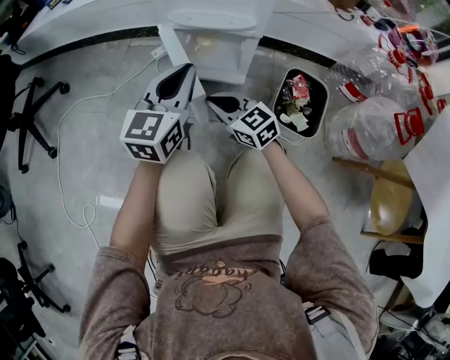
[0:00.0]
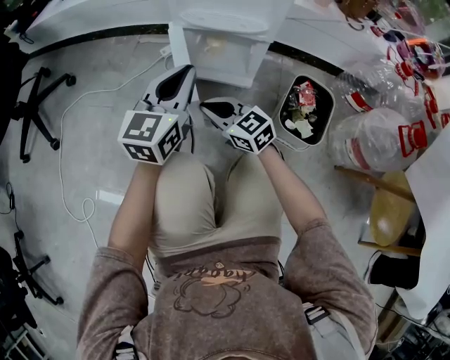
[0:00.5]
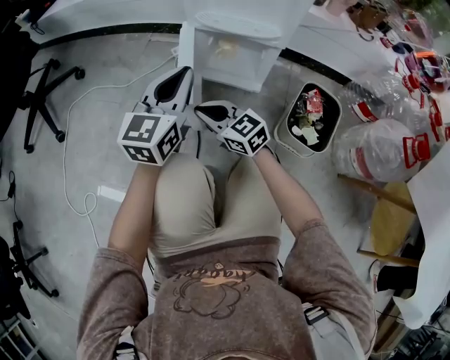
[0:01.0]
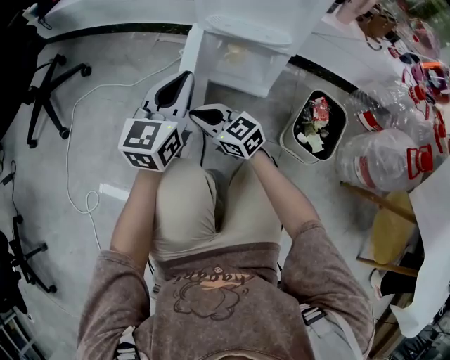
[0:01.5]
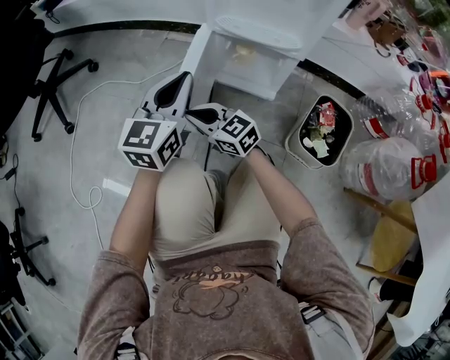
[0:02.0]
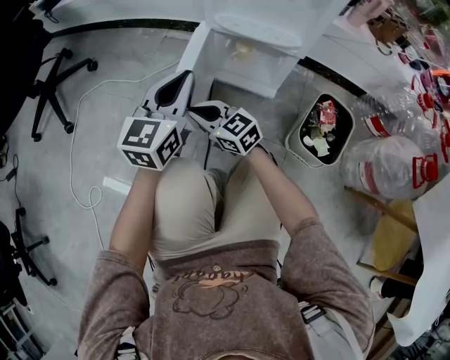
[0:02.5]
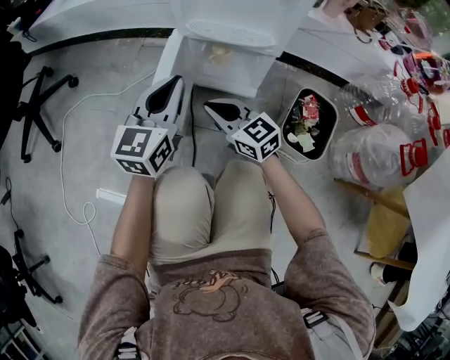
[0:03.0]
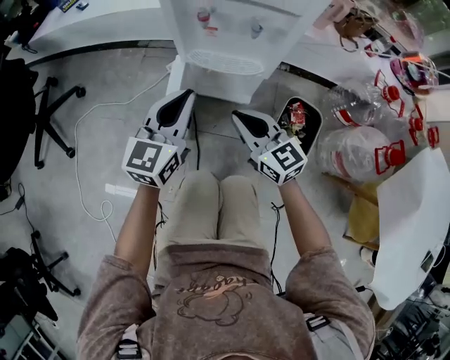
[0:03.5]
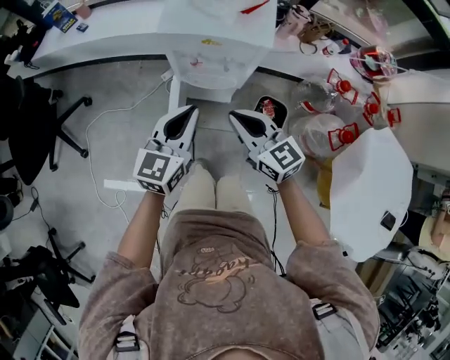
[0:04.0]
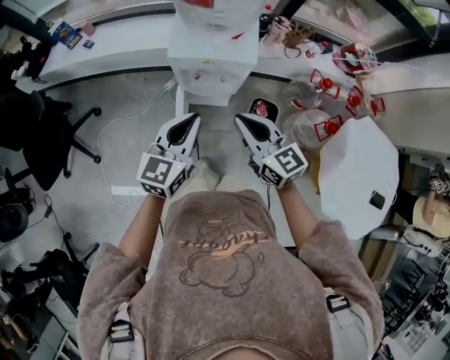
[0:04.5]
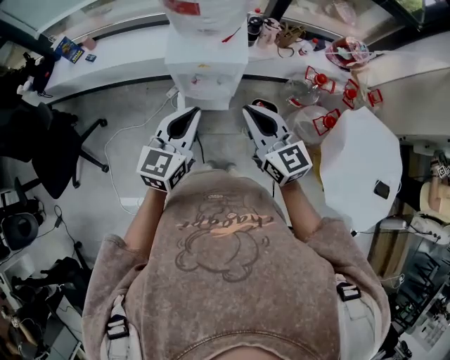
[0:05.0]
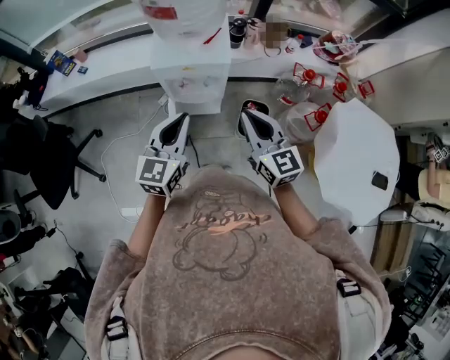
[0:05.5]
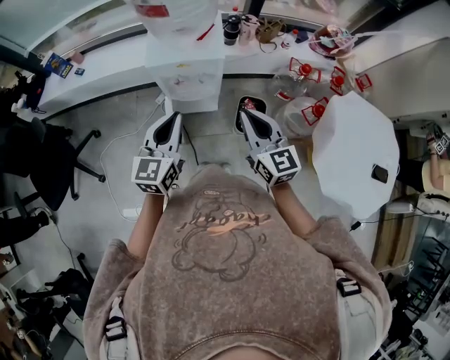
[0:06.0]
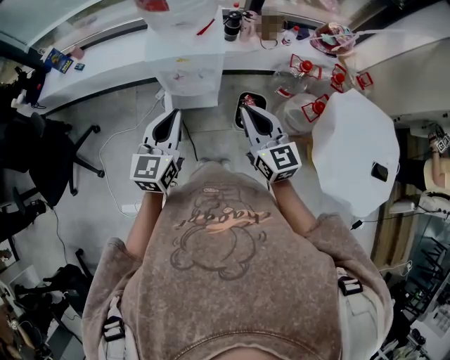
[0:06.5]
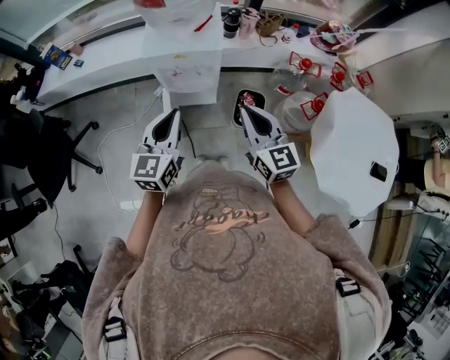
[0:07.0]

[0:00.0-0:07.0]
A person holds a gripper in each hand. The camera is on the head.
0:00.0 to 0:02.0: The right gripper moves to the left, roughly 15 cm. Meanwhile the left gripper heads to the left, covering some 10 cm.
0:02.0 to 0:03.5: The right gripper shifts approximately 25 cm upward and to the right, and swivels about 30 degrees. The left gripper goes roughly 15 cm upward and to the right.
0:03.5 to 0:05.0: The grippers both shift upward by approximately 40 cm.
0:05.0 to 0:07.0: The right gripper travels to the right by some 5 cm, while the left gripper ends up roughly 5 cm from where it was.

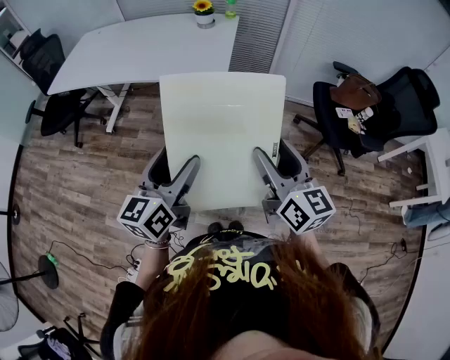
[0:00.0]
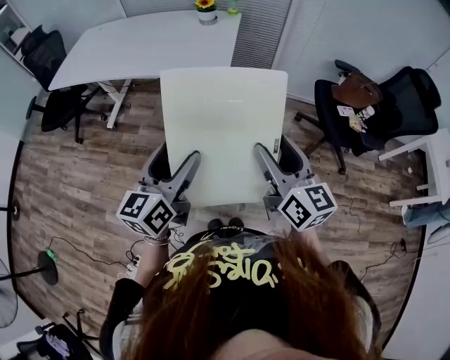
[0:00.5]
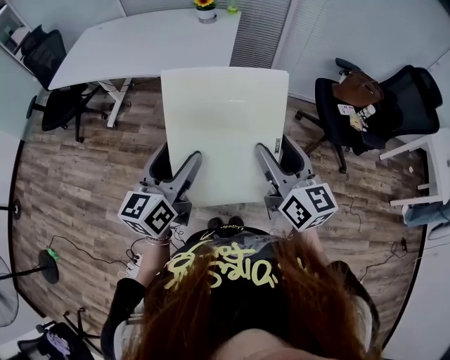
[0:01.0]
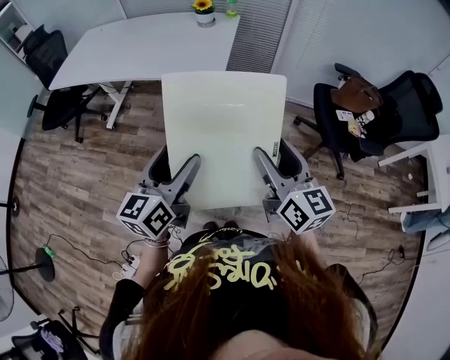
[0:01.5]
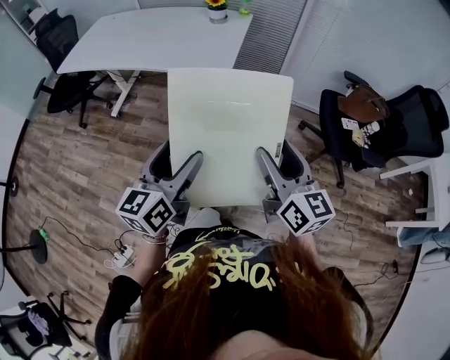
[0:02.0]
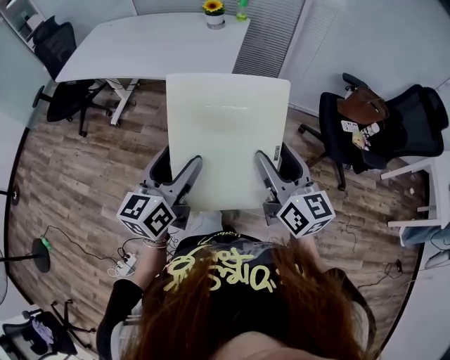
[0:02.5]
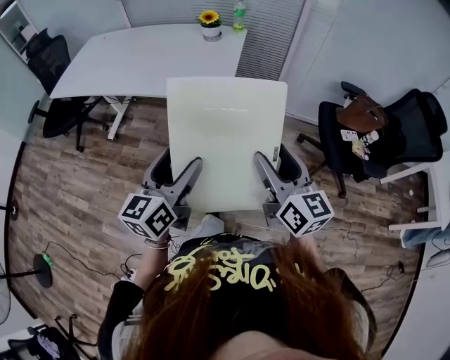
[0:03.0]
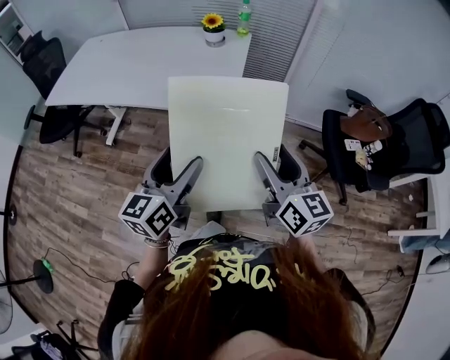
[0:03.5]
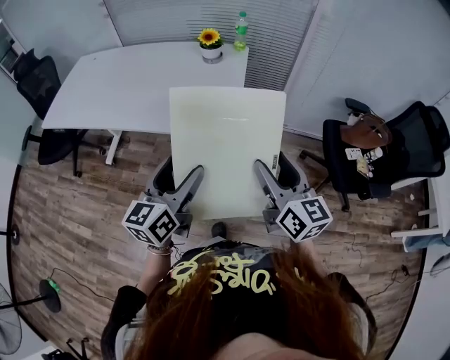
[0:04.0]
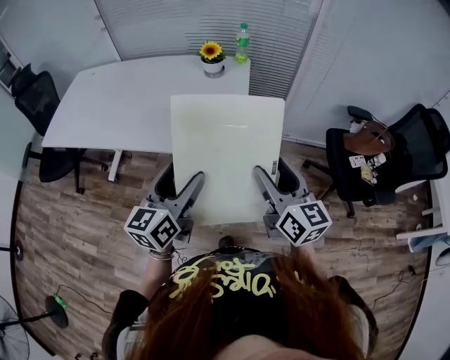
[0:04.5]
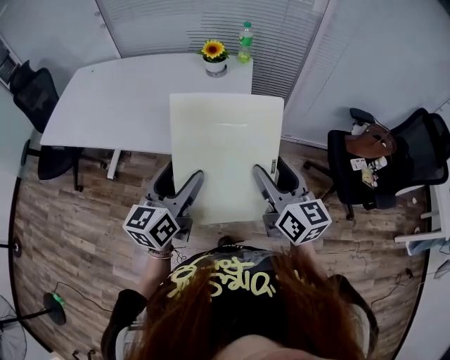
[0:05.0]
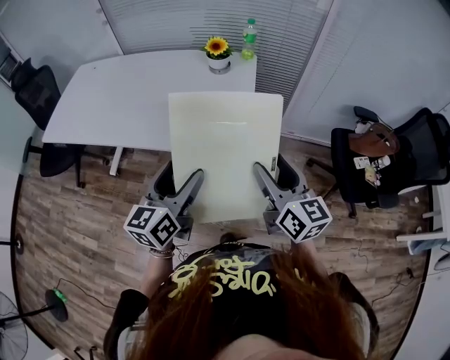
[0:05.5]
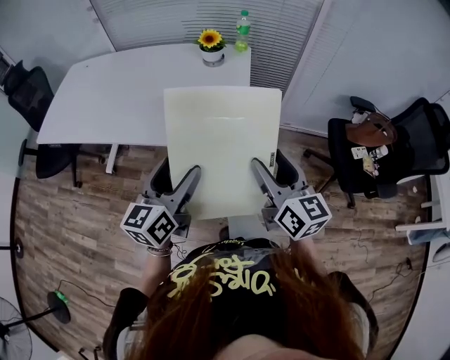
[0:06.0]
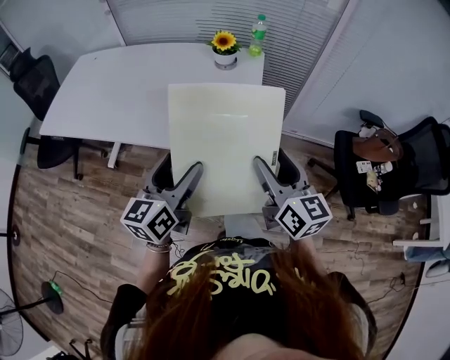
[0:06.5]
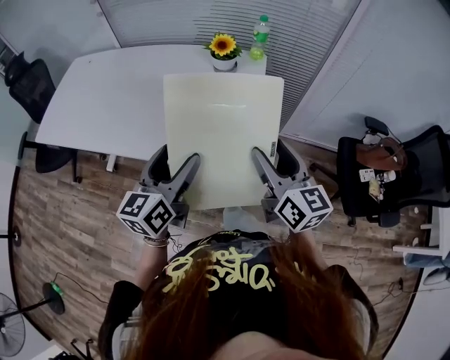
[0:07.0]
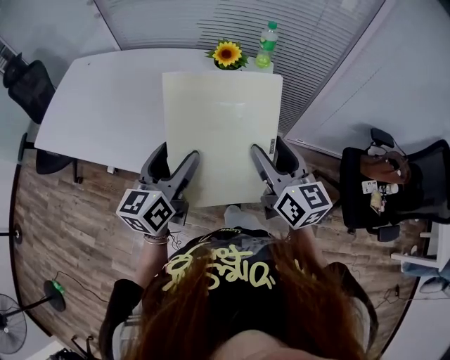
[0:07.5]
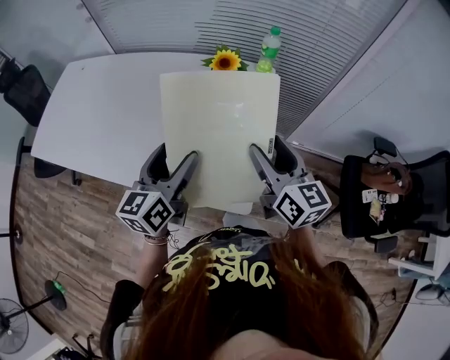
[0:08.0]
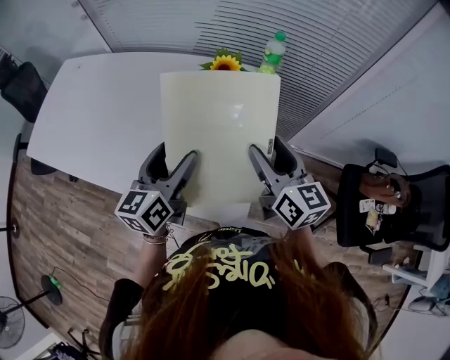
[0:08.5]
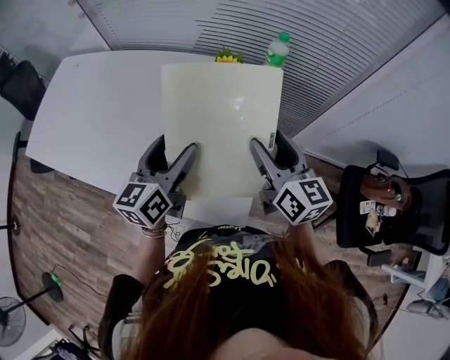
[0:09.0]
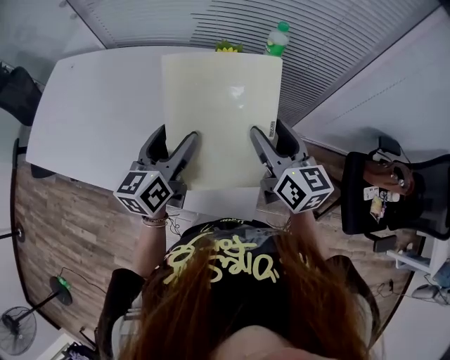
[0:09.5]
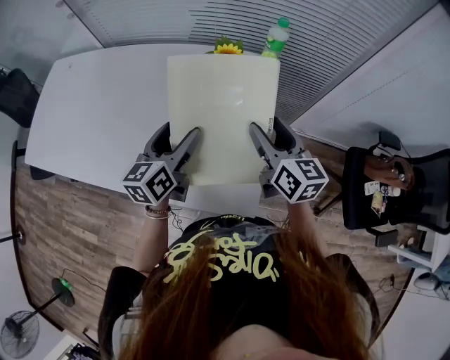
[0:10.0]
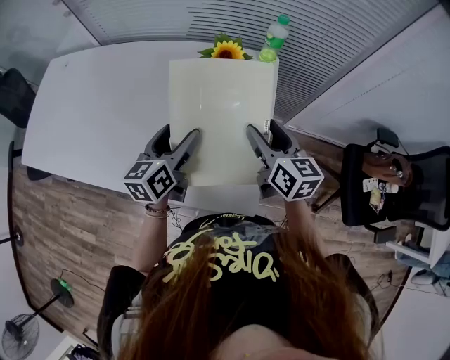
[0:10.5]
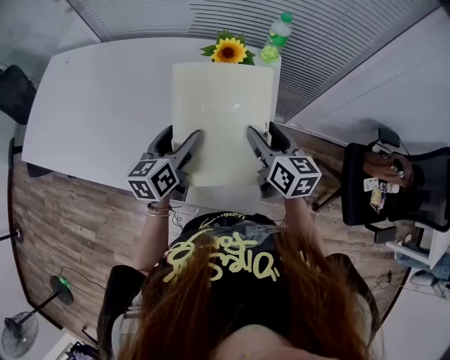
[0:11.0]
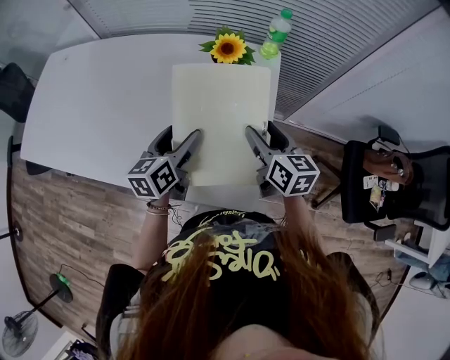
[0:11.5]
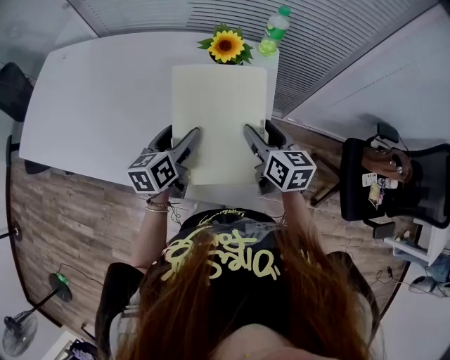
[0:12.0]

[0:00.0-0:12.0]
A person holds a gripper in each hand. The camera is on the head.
0:00.0 to 0:02.0: The grippers stay close to where they were, moving slightly.
0:02.0 to 0:04.0: The two grippers go about 20 cm forward.
0:04.0 to 0:06.0: The two grippers go approximately 5 cm forward.
0:06.0 to 0:08.0: Both grippers travel together forward, about 25 cm.
0:08.0 to 0:10.0: The grippers both shift forward by approximately 10 cm.
0:10.0 to 0:12.0: The two grippers go approximately 5 cm downward.

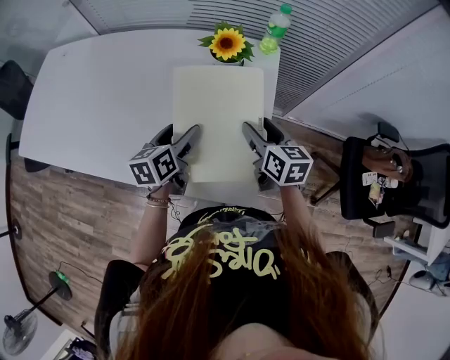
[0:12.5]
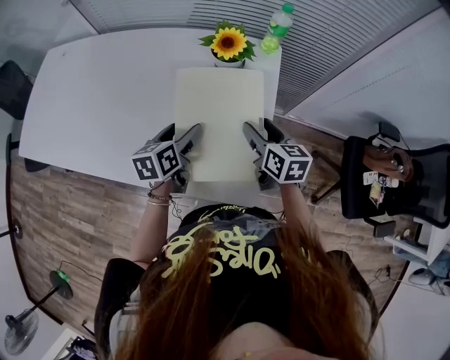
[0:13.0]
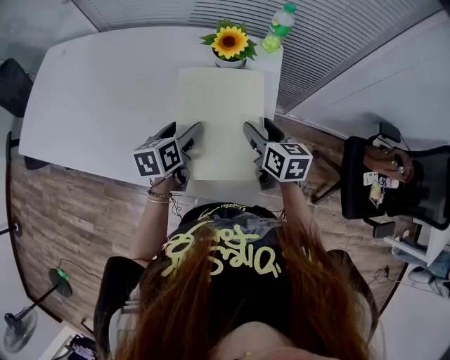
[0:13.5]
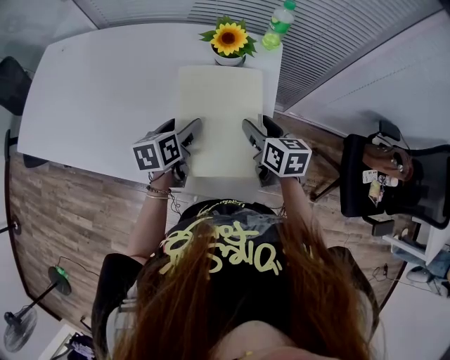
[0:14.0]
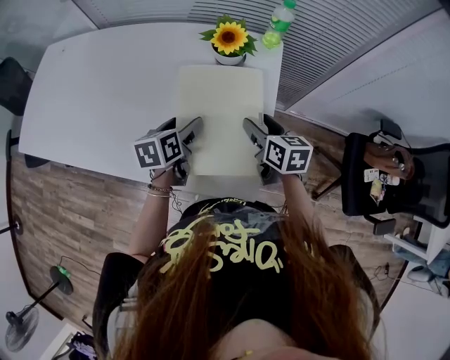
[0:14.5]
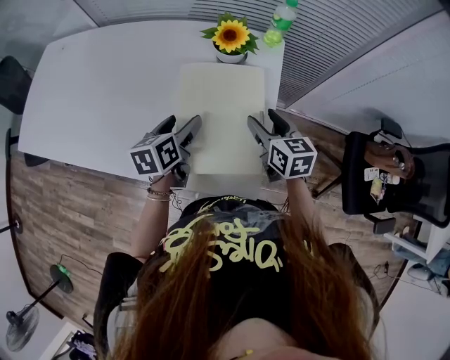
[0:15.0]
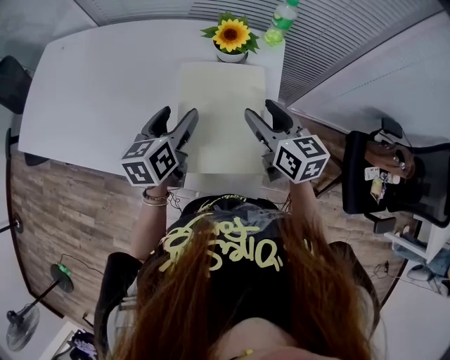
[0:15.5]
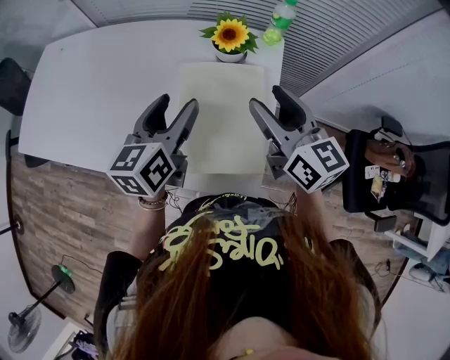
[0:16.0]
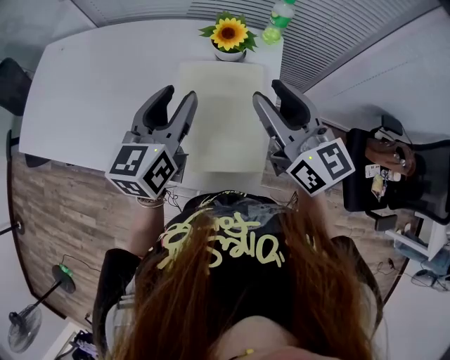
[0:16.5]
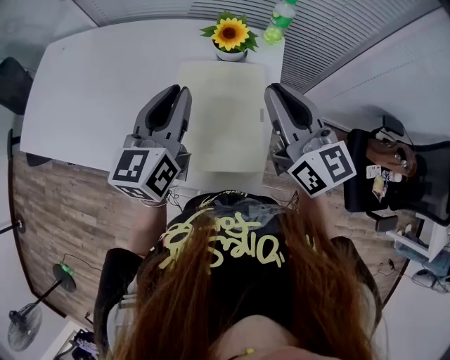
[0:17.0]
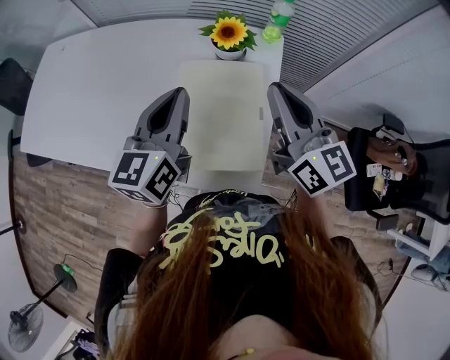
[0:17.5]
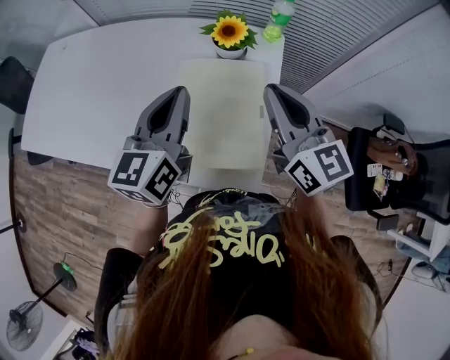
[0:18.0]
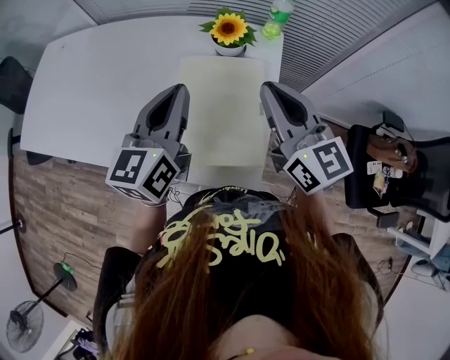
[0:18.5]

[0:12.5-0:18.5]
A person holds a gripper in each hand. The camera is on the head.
0:12.5 to 0:14.5: There are only small adjustments of the grippers.
0:14.5 to 0:16.5: The grippers both shift upward by approximately 20 cm. The right gripper angles its fingers upward, by about 30 degrees. Meanwhile the left gripper turns by about 30 degrees, and closes up.
0:16.5 to 0:18.5: The right gripper closes its fingers, while the left gripper closes up.

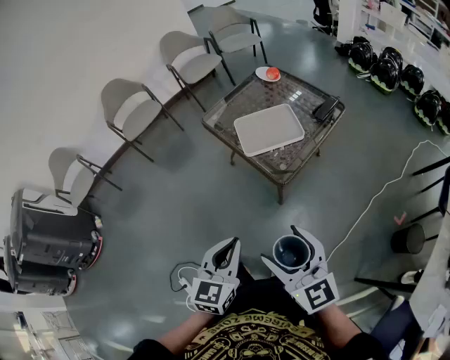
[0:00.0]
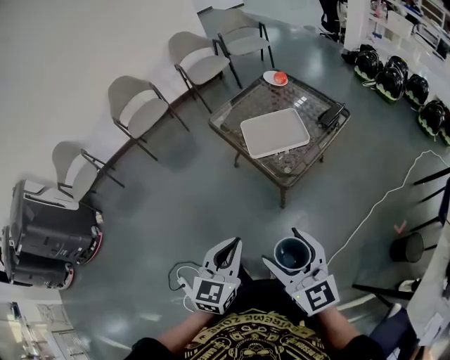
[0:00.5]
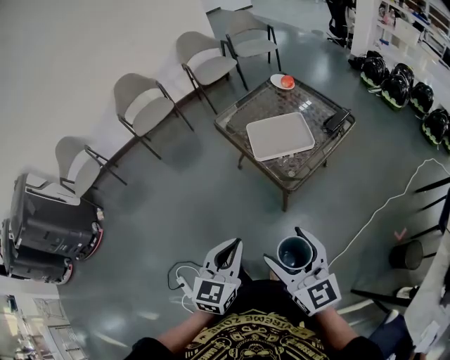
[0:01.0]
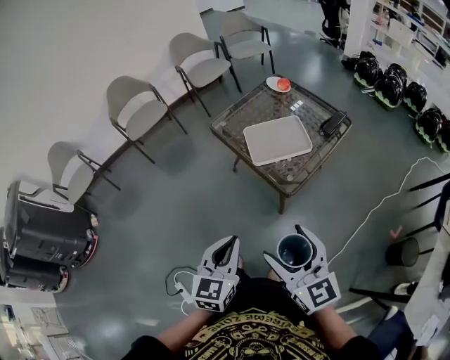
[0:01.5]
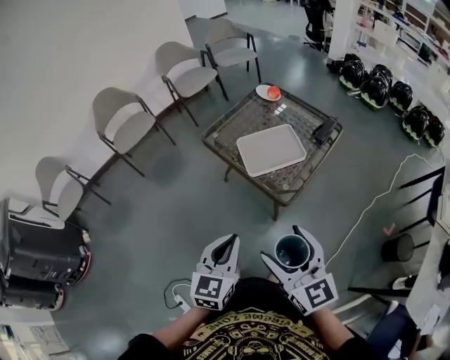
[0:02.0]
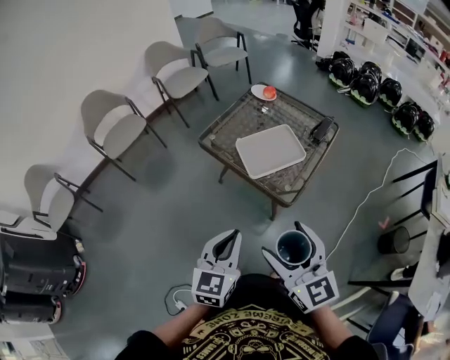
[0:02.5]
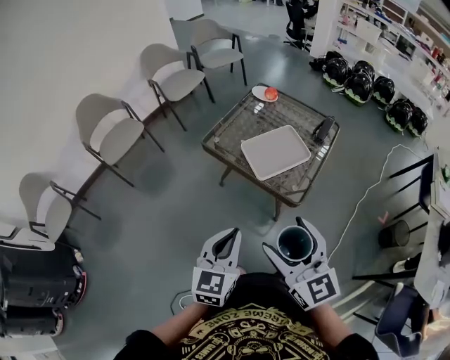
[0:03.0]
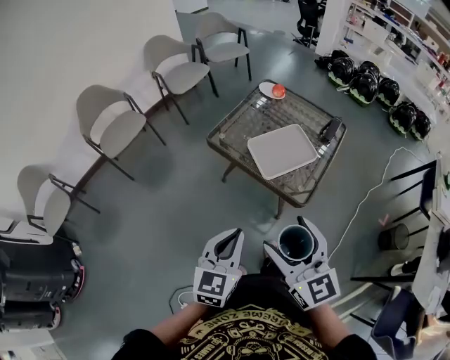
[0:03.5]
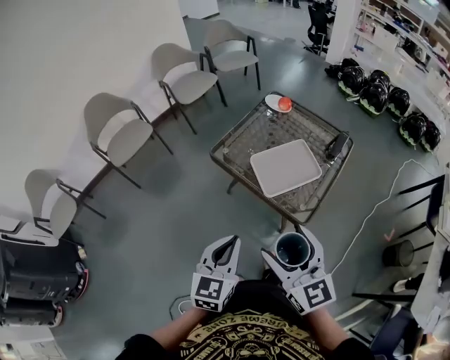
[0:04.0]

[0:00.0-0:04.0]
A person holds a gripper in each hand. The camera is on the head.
0:00.0 to 0:02.0: Both grippers move forward, roughly 10 cm.
0:02.0 to 0:04.0: Both grippers move forward and to the left, roughly 15 cm.
